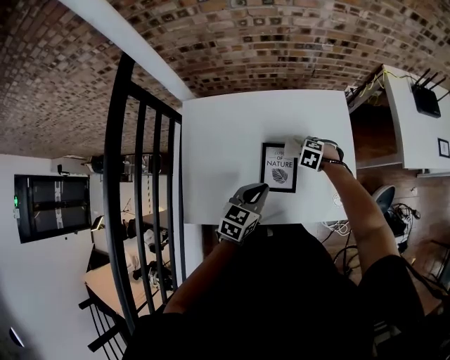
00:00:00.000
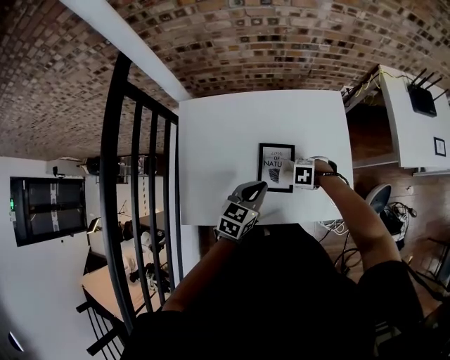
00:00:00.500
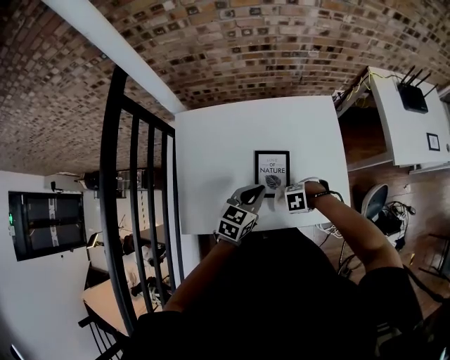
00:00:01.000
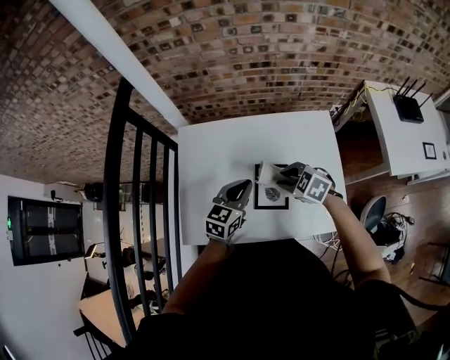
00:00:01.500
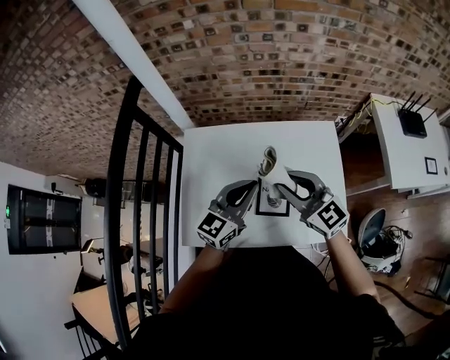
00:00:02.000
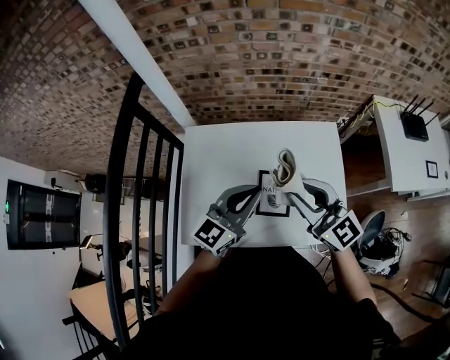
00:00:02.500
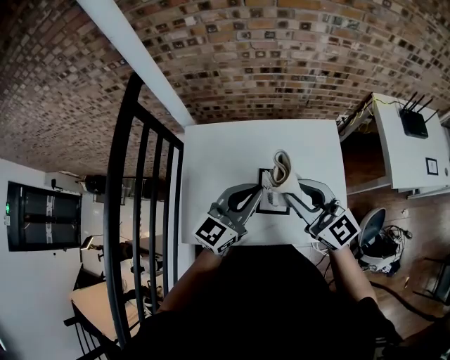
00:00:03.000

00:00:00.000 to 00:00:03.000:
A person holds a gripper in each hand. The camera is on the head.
00:00:00.000 to 00:00:01.500: The left gripper moves some 10 cm, while the right gripper travels upward by approximately 15 cm, and changes its angle by about 30 degrees.
00:00:01.500 to 00:00:03.000: The right gripper moves upward, roughly 20 cm, and angles its fingers upward, by some 50 degrees. The left gripper shifts roughly 15 cm upward, and changes its angle by approximately 20 degrees.

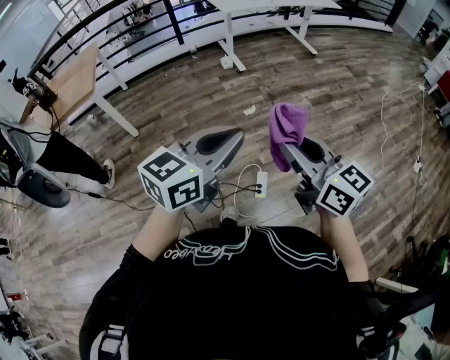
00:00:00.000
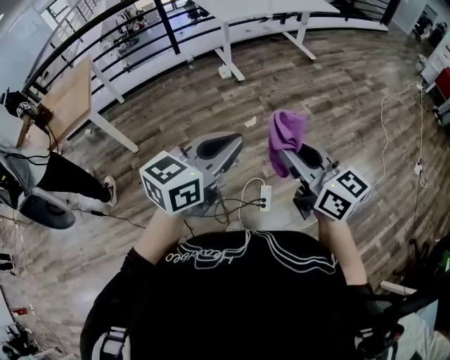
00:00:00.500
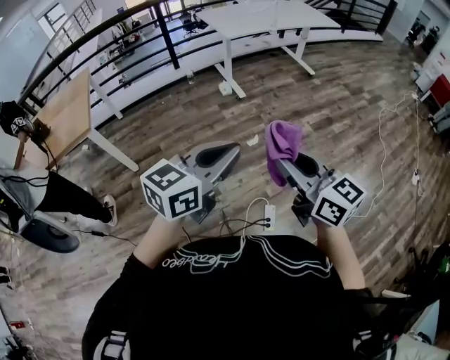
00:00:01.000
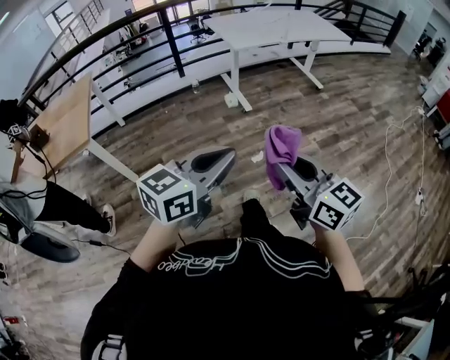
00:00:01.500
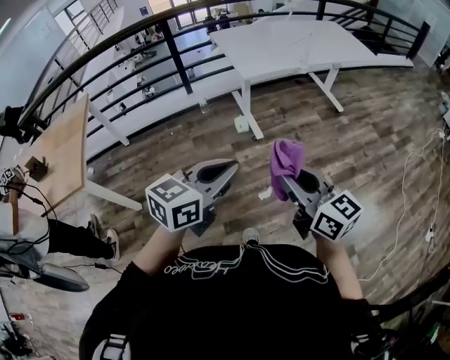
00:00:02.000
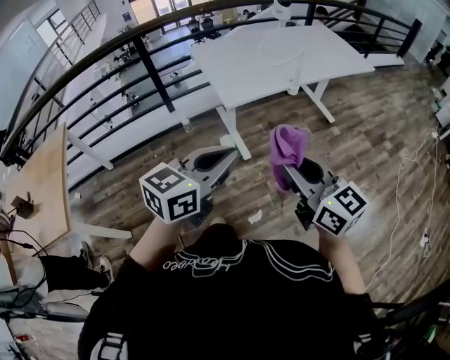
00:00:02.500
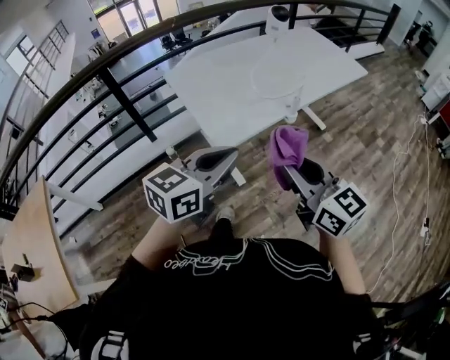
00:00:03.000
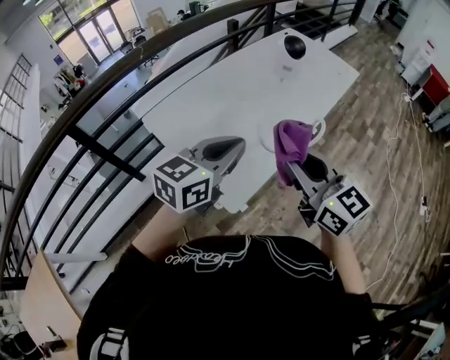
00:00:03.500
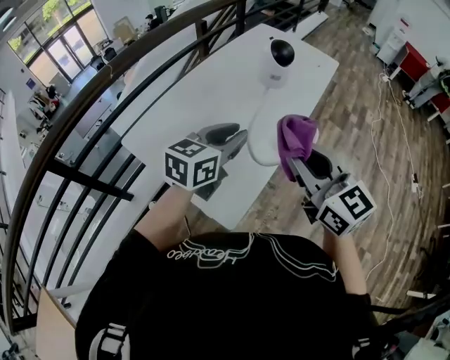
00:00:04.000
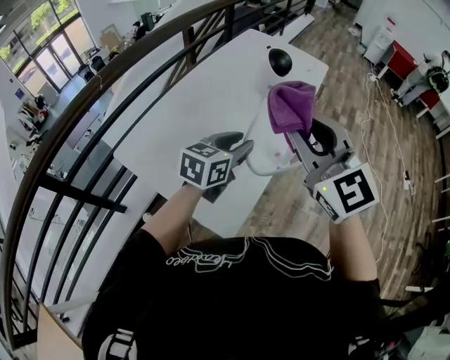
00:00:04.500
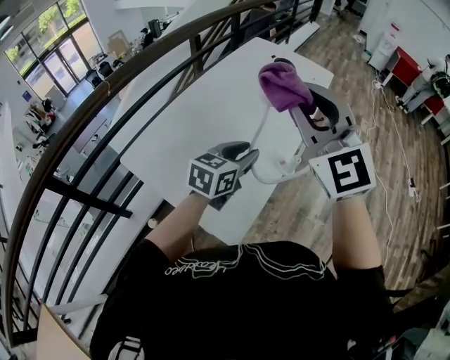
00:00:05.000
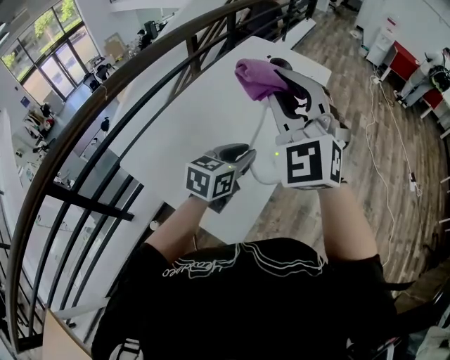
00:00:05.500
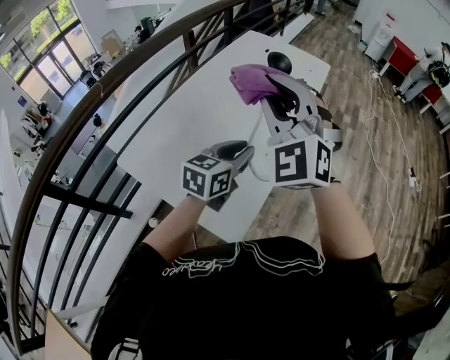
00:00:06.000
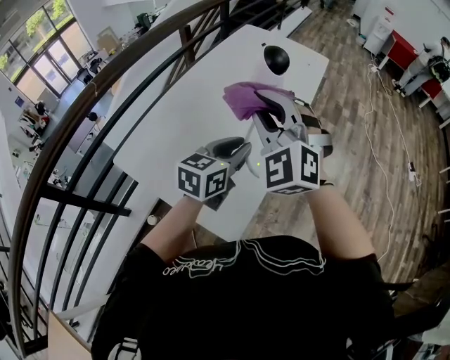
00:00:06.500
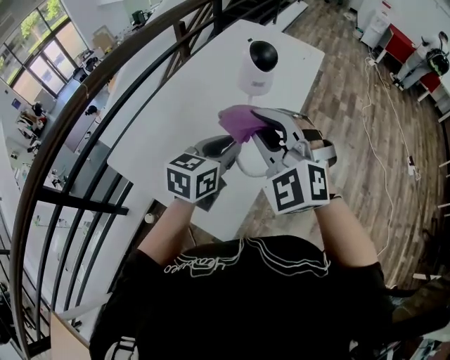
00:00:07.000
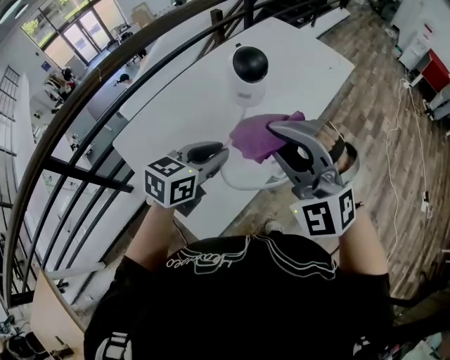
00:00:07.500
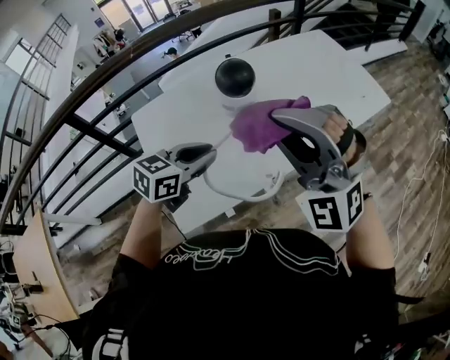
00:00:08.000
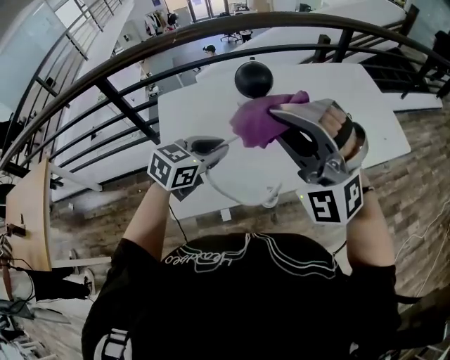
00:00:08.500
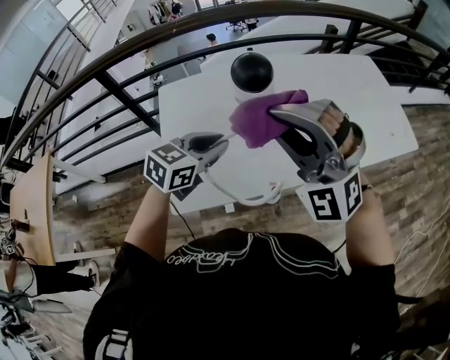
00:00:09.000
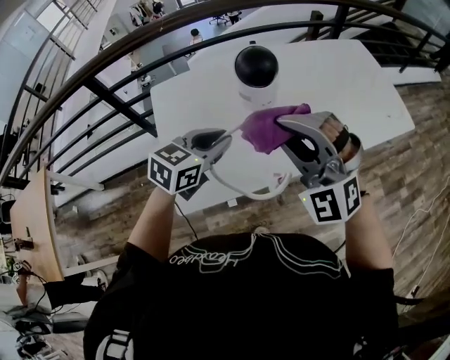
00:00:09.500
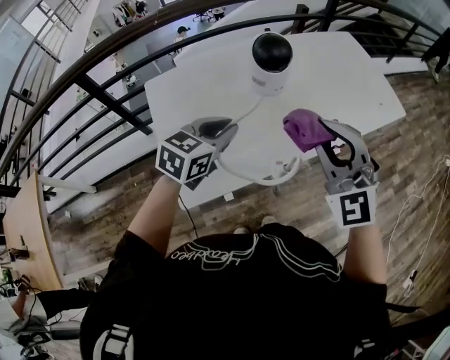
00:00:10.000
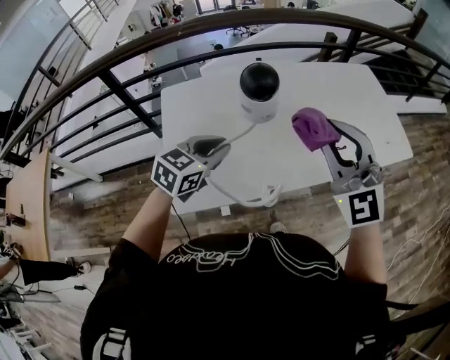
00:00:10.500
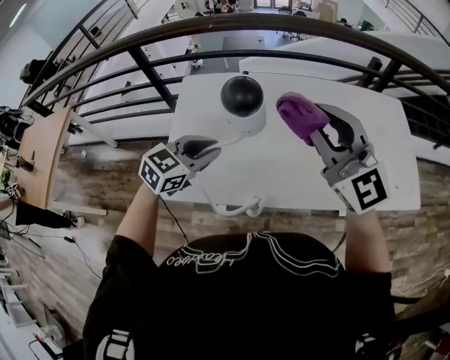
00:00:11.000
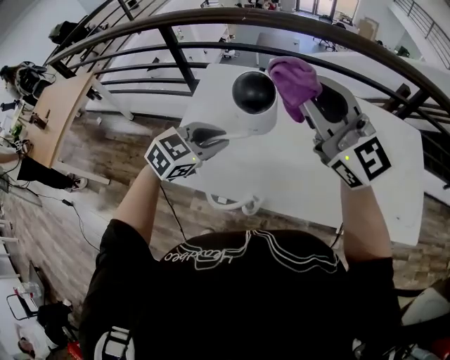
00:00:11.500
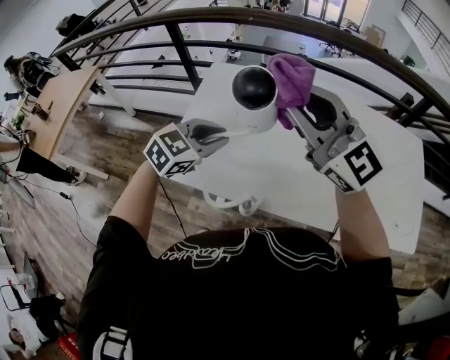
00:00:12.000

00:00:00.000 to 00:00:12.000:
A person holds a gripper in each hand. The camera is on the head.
00:00:00.000 to 00:00:02.000: The pair of grippers is taken forward, some 60 cm.
00:00:02.000 to 00:00:04.000: The pair of grippers is taken roughly 80 cm. The left gripper rotates some 30 degrees. Meanwhile the right gripper rotates some 40 degrees.
00:00:04.000 to 00:00:06.000: The right gripper shifts roughly 15 cm forward, upward and to the left, and rotates around the line of its fingers by roughly 60 degrees, counterclockwise from behind. The left gripper changes place by about 5 cm.
00:00:06.000 to 00:00:08.000: The left gripper ends up some 5 cm from where it was, and rotates approximately 20 degrees, while the right gripper changes place by approximately 15 cm, and changes its angle by about 50 degrees.
00:00:08.000 to 00:00:10.000: The right gripper goes roughly 5 cm downward, and swivels about 20 degrees.
00:00:10.000 to 00:00:12.000: The left gripper rotates roughly 20 degrees. Meanwhile the right gripper moves some 15 cm, and rotates some 70 degrees.

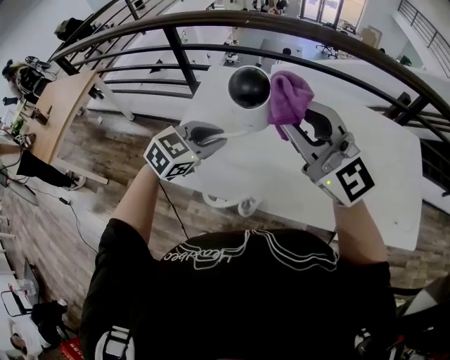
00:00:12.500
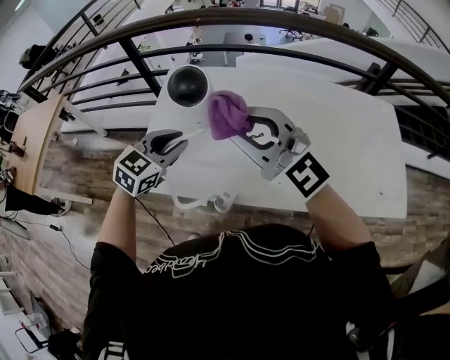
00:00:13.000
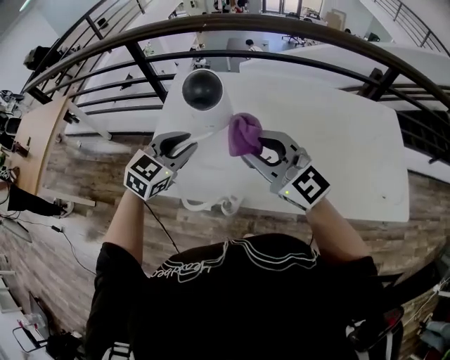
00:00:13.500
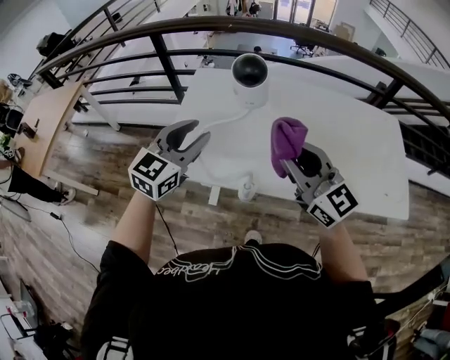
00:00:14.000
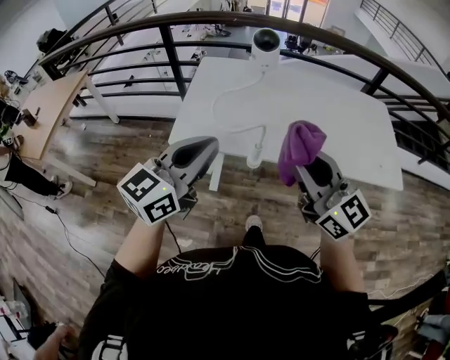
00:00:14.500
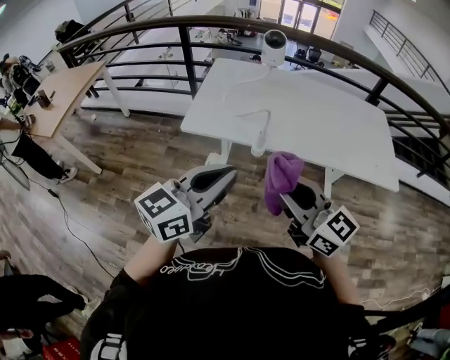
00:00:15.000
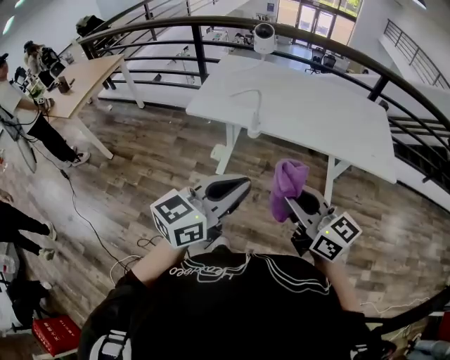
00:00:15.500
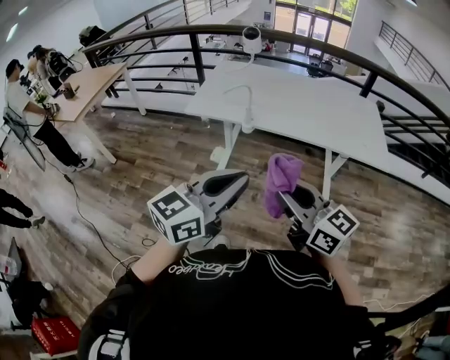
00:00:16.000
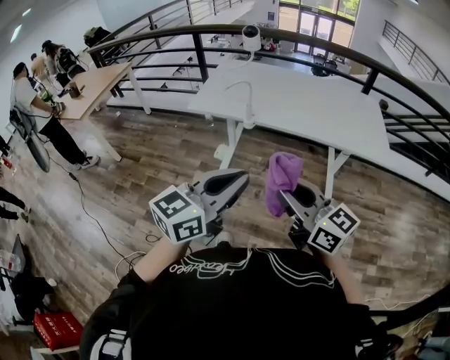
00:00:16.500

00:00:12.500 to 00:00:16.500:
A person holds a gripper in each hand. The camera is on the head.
00:00:12.500 to 00:00:14.500: The right gripper goes some 25 cm backward, and turns by approximately 30 degrees. The left gripper travels backward and upward by roughly 30 cm, and angles its fingers upward, by approximately 30 degrees.
00:00:14.500 to 00:00:16.500: The right gripper shifts roughly 35 cm backward, and turns by roughly 20 degrees. Meanwhile the left gripper moves backward and to the right, roughly 40 cm.

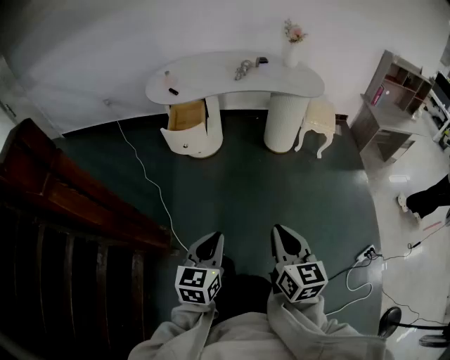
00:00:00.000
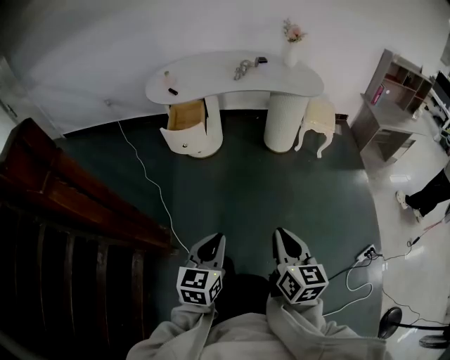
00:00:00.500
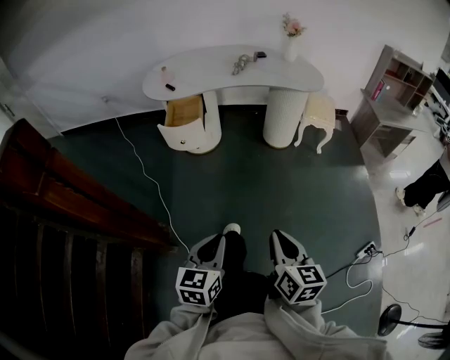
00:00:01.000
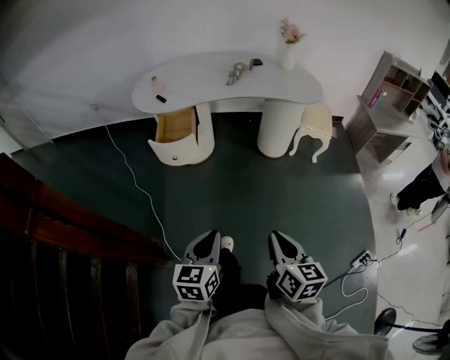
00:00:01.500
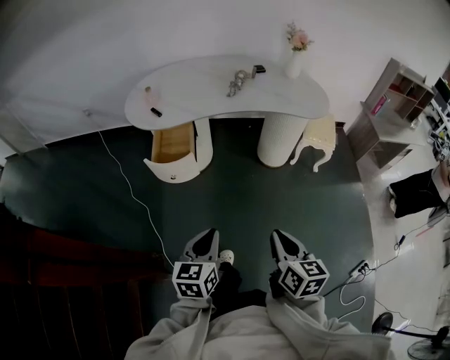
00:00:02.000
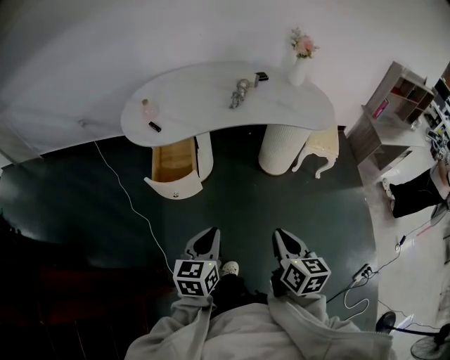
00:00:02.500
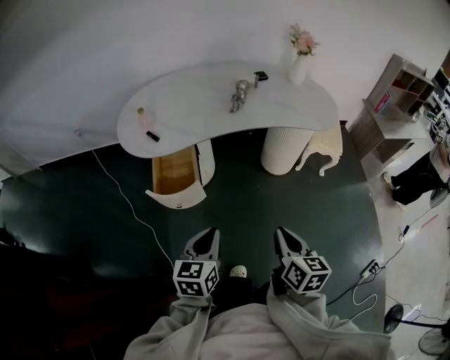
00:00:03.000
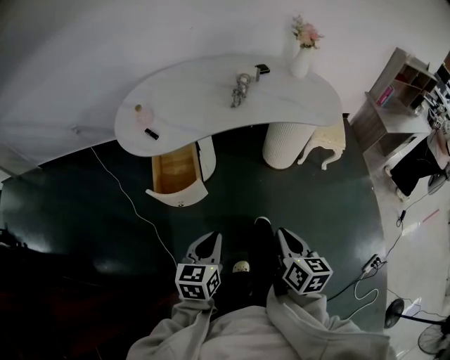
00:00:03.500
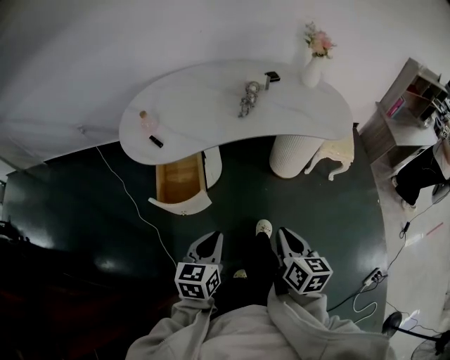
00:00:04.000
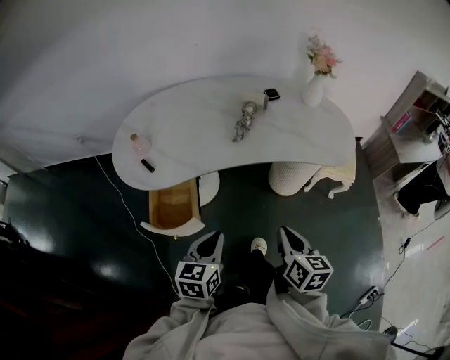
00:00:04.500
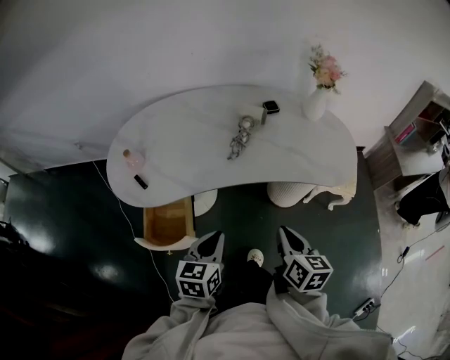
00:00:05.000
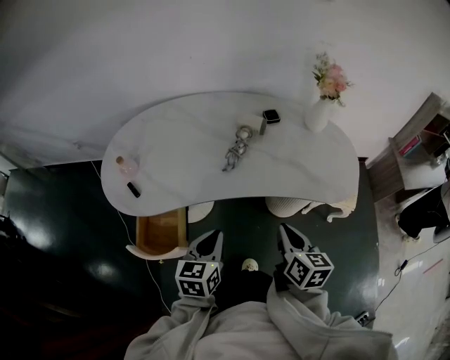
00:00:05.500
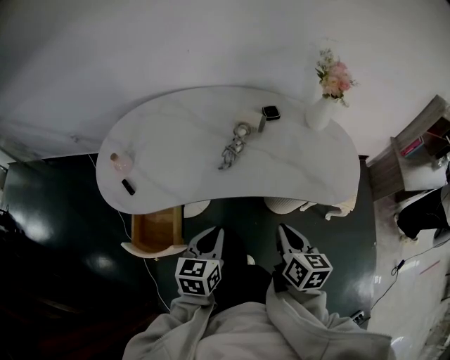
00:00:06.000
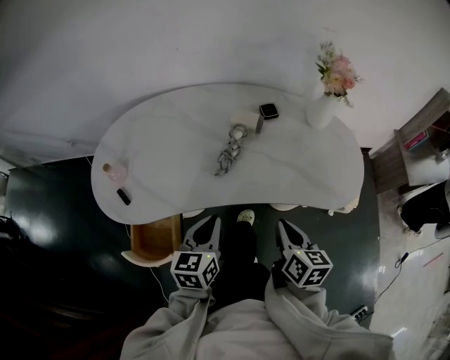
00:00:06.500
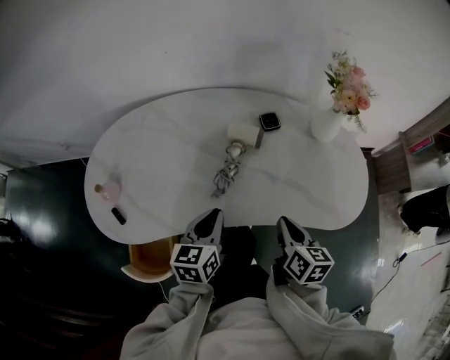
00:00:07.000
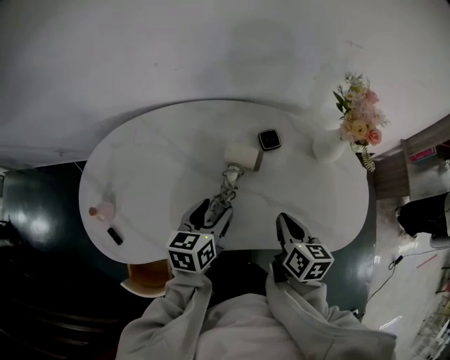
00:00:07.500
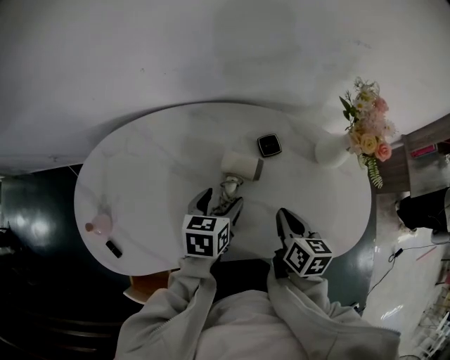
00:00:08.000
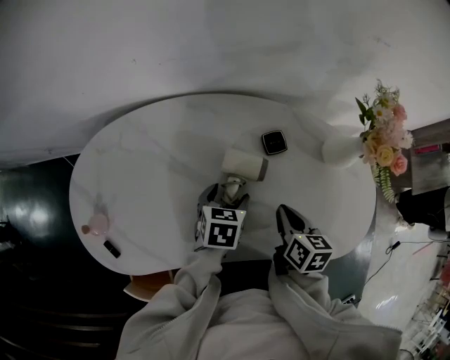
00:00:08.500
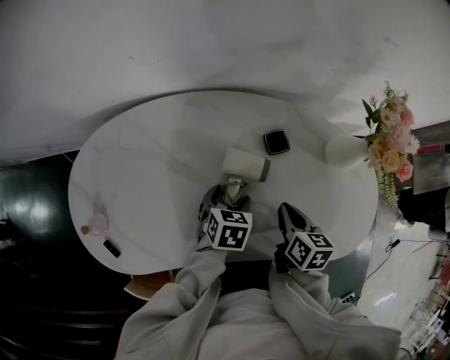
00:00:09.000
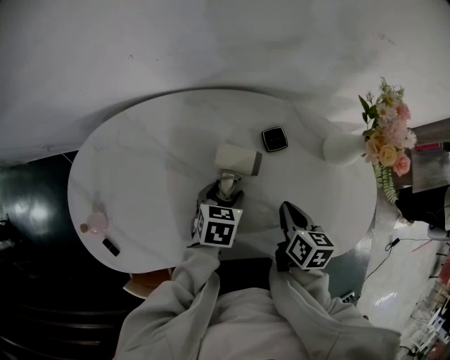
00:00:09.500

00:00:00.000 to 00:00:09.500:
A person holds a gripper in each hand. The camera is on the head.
00:00:00.000 to 00:00:02.000: The two grippers go about 20 cm forward.
00:00:02.000 to 00:00:04.000: Both grippers move forward, about 20 cm.
00:00:04.000 to 00:00:05.500: Both grippers move forward, roughly 25 cm.
00:00:05.500 to 00:00:07.500: The grippers both shift forward by some 25 cm. The left gripper opens up.
00:00:07.500 to 00:00:09.500: The right gripper moves forward and downward, approximately 10 cm. Meanwhile the left gripper travels downward and forward by about 15 cm, and turns by about 30 degrees.
